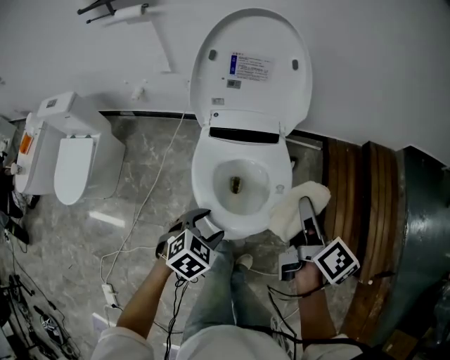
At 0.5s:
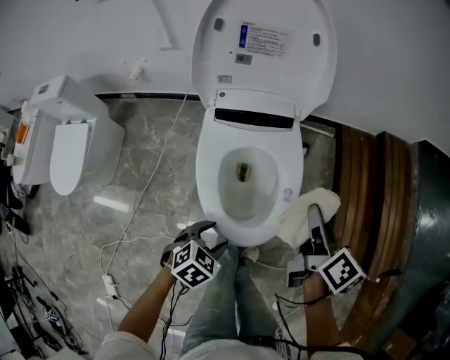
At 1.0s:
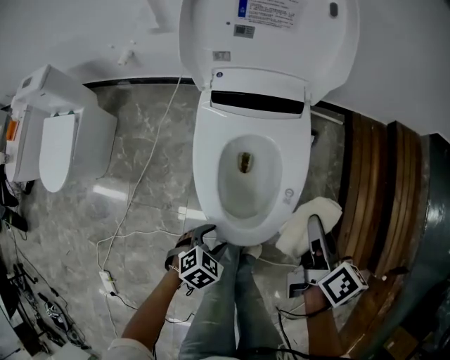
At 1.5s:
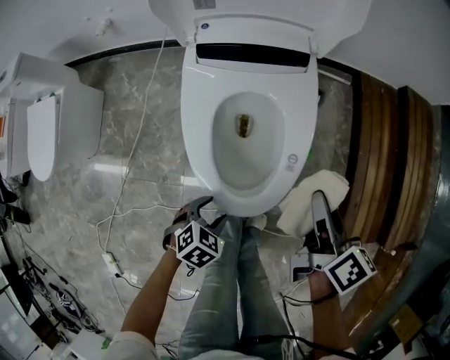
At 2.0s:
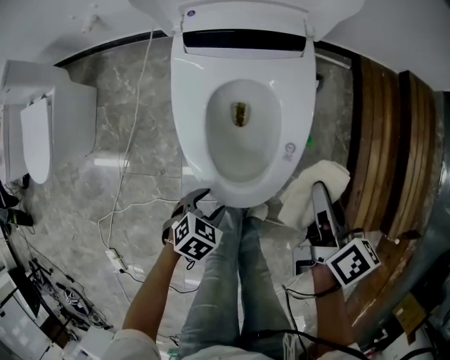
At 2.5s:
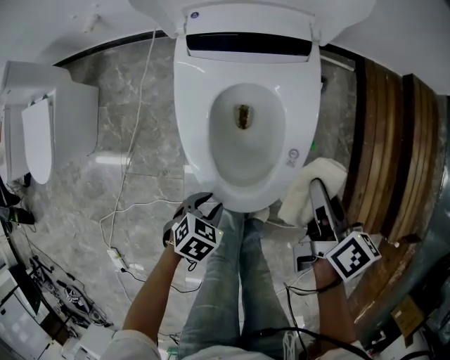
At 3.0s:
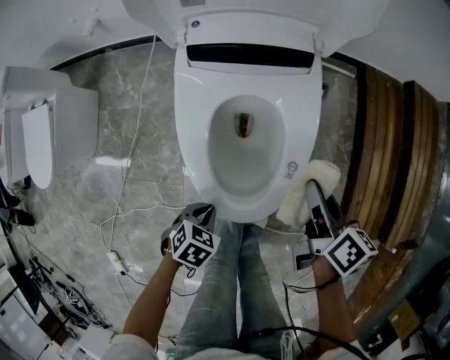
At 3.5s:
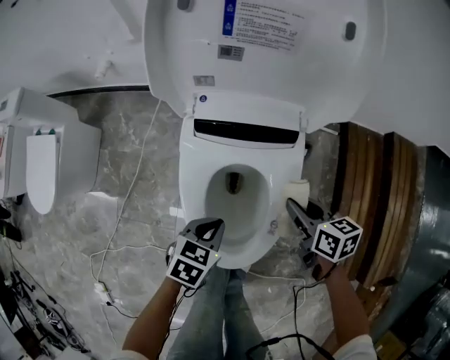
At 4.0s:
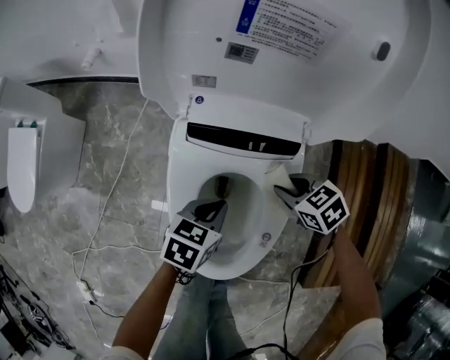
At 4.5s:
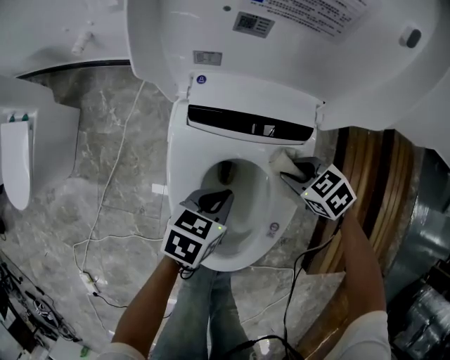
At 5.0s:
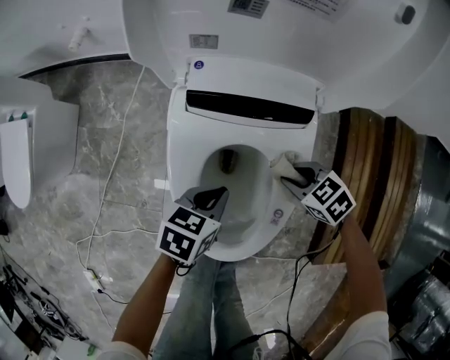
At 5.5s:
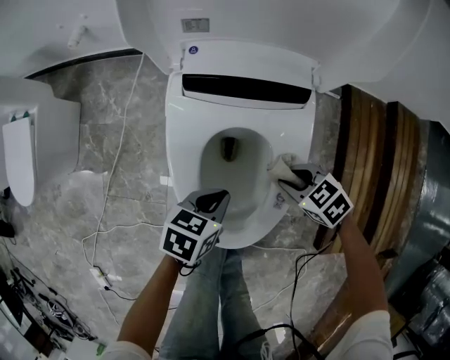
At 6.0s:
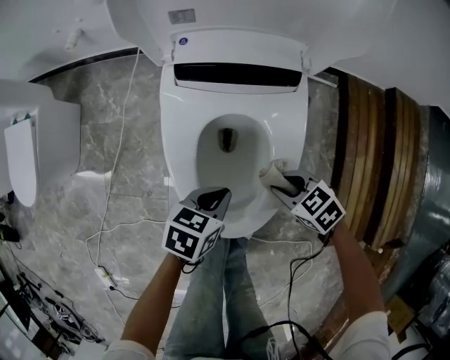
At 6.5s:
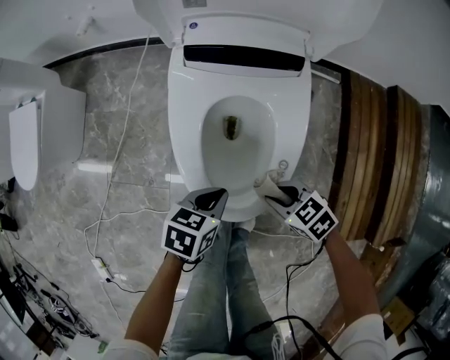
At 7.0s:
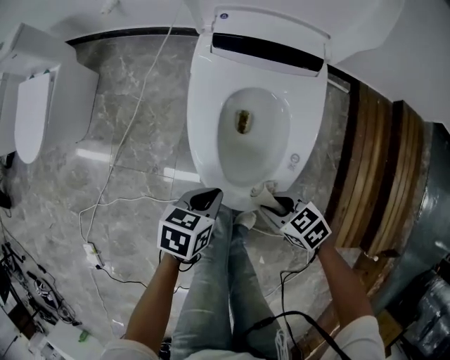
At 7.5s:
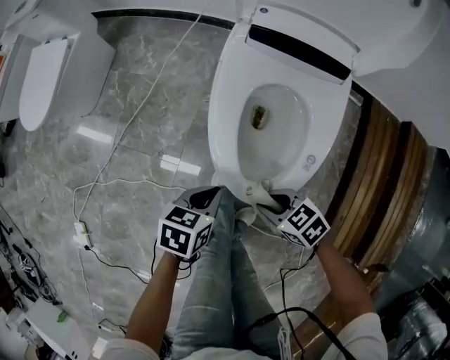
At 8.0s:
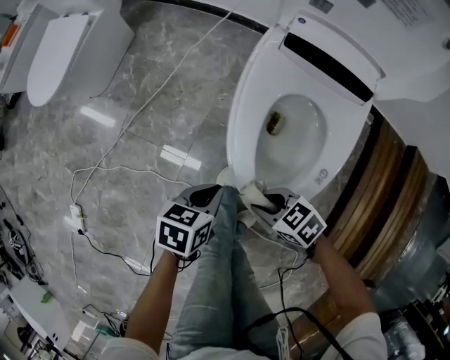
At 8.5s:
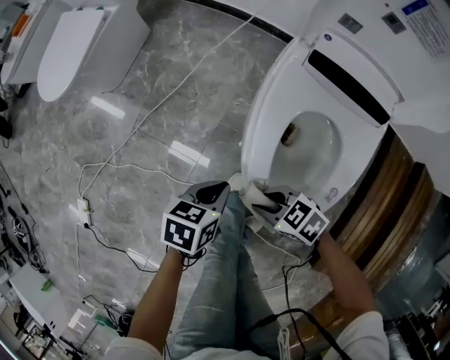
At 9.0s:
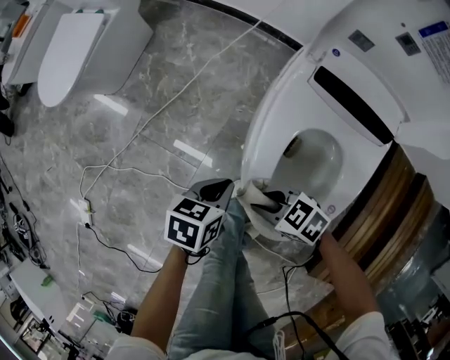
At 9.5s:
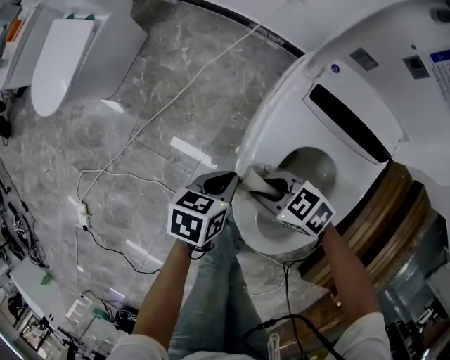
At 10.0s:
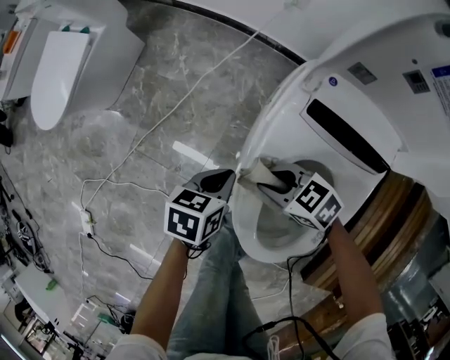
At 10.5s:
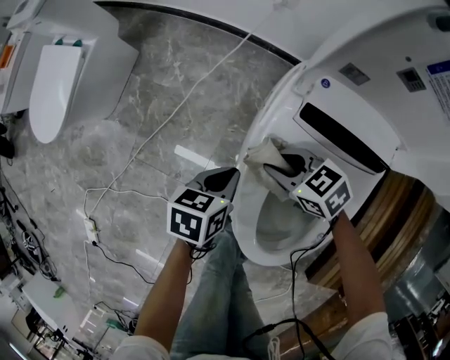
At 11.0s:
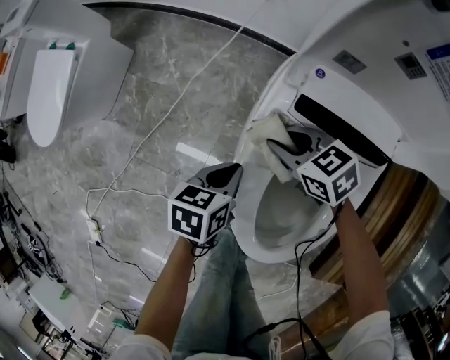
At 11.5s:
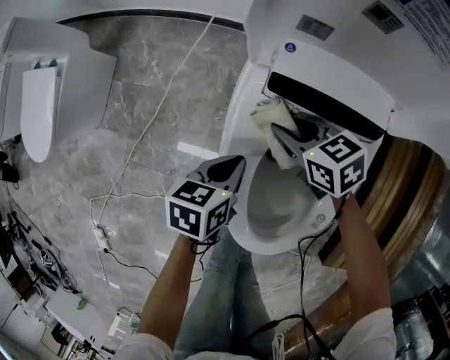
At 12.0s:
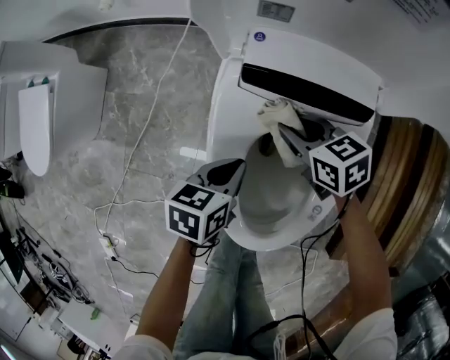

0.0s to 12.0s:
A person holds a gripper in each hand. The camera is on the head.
0.0s to 2.0s: Both grippers move downward, roughly 25 cm.
2.0s to 4.0s: The left gripper ends up about 25 cm from where it was, swivels approximately 30 degrees, and closes. Meanwhile the right gripper changes place by approximately 25 cm, and angles its fingers downward, by some 30 degrees.
4.0s to 6.0s: The left gripper ends up about 10 cm from where it was. Meanwhile the right gripper ends up approximately 15 cm from where it was.
6.0s to 8.0s: The left gripper shifts by roughly 20 cm, and changes its angle by approximately 30 degrees; the right gripper moves approximately 20 cm, and rotates some 20 degrees.
8.0s to 10.0s: The left gripper changes place by about 20 cm. Meanwhile the right gripper changes place by some 25 cm.
10.0s to 12.0s: The left gripper changes place by approximately 10 cm. The right gripper ends up approximately 15 cm from where it was, and rotates about 40 degrees.

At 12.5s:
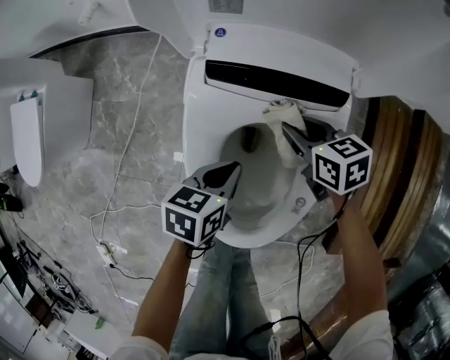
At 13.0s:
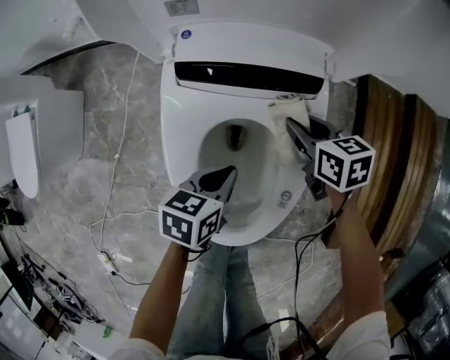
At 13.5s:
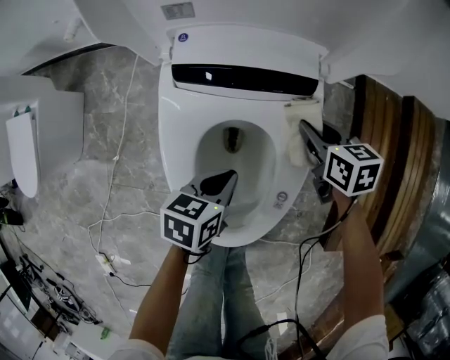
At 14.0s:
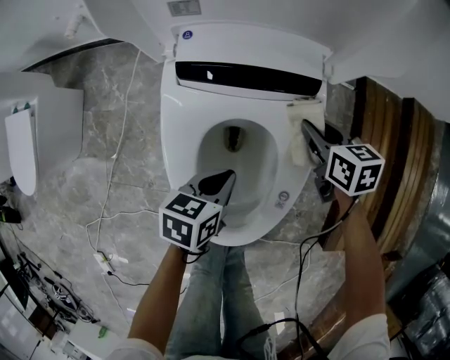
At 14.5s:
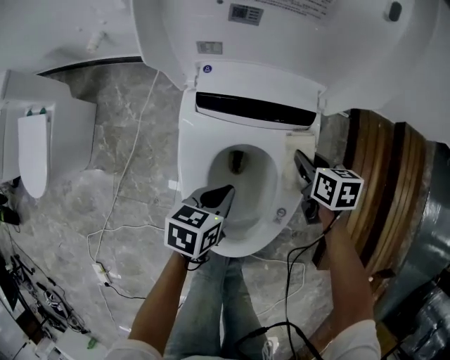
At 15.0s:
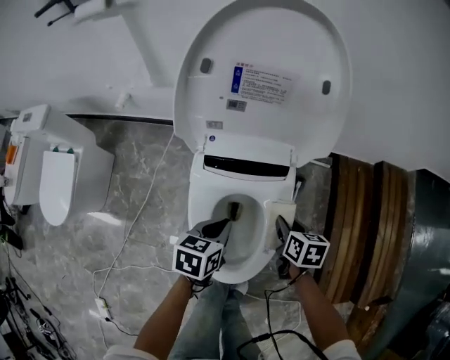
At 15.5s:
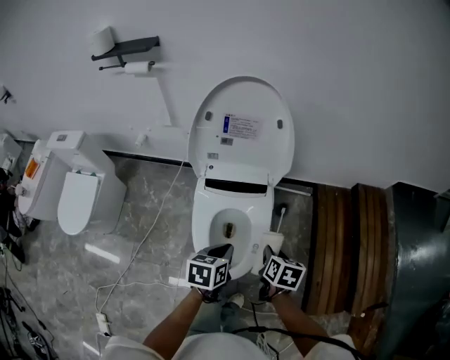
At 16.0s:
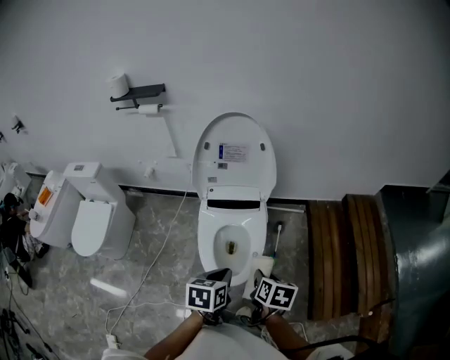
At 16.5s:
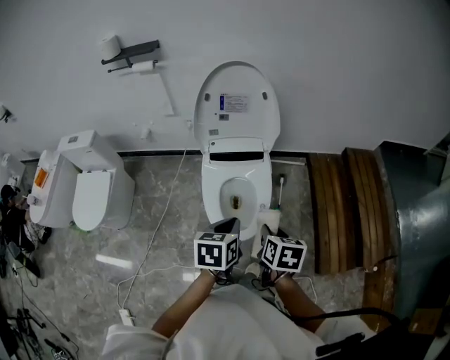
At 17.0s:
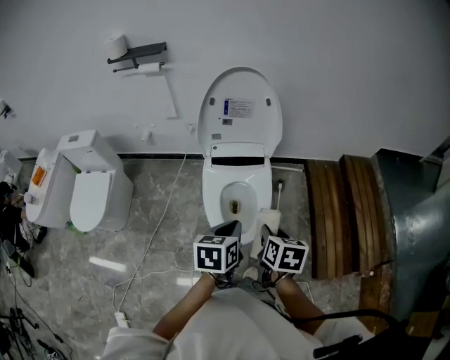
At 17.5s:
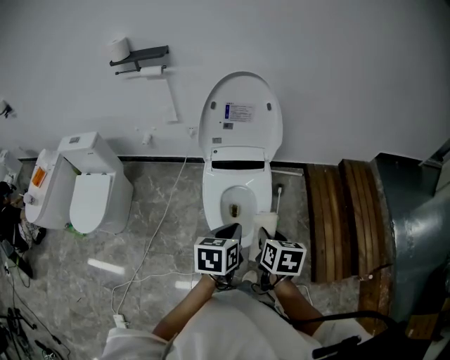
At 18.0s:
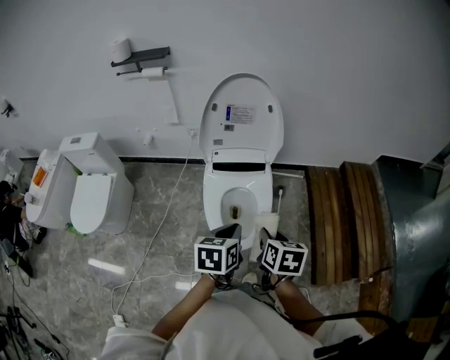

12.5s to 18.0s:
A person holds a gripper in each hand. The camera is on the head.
12.5s to 14.5s: The right gripper is displaced to the right by some 10 cm, and rotates roughly 20 degrees.
14.5s to 16.0s: The left gripper shifts approximately 40 cm upward and backward. Meanwhile the right gripper moves backward and upward, some 40 cm, and swivels about 20 degrees.
16.0s to 18.0s: The right gripper shifts about 5 cm to the left and upward; the left gripper ends up some 5 cm from where it was.

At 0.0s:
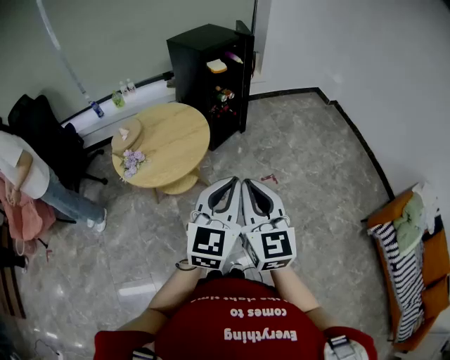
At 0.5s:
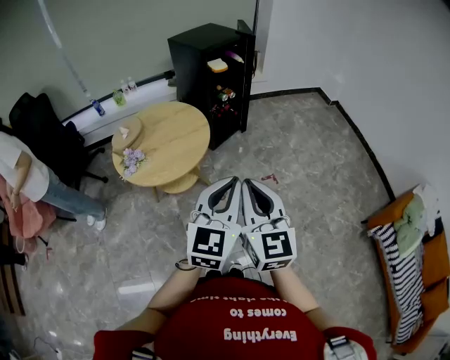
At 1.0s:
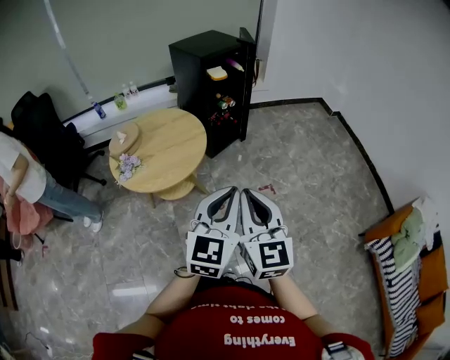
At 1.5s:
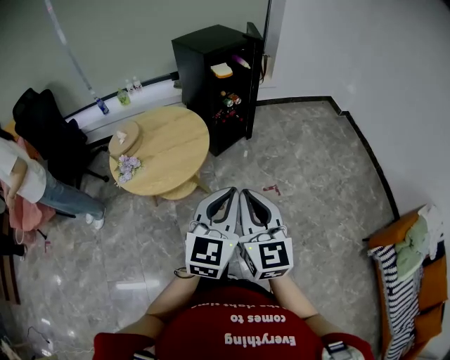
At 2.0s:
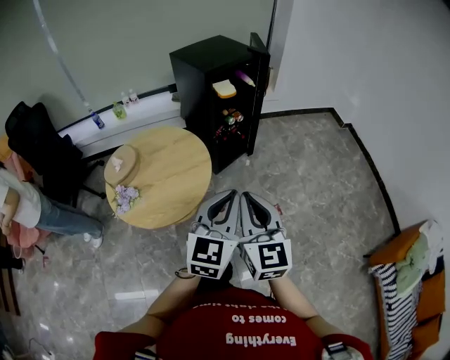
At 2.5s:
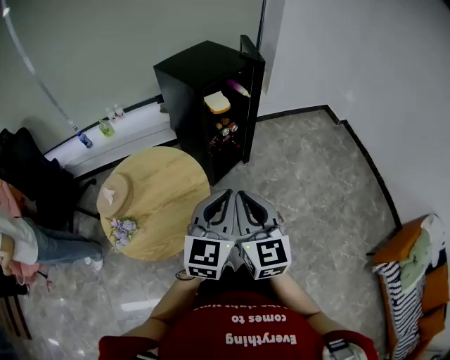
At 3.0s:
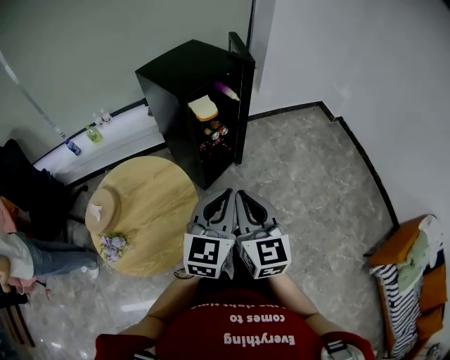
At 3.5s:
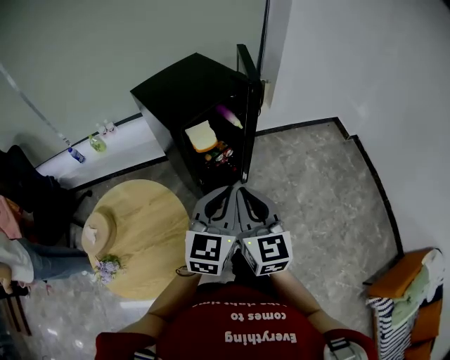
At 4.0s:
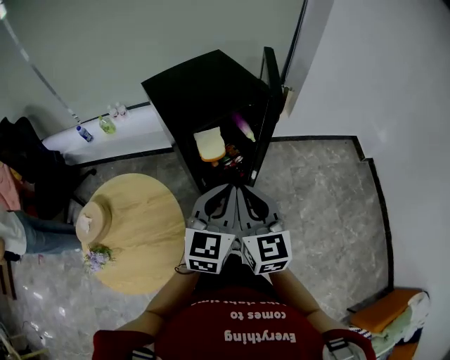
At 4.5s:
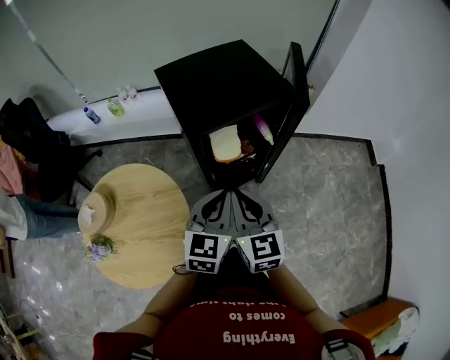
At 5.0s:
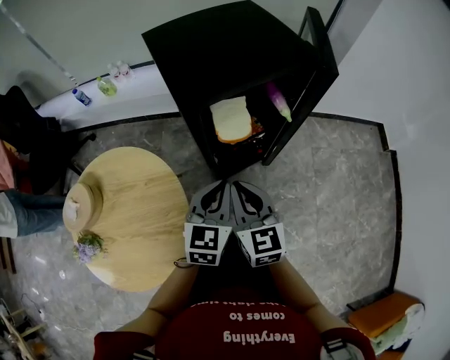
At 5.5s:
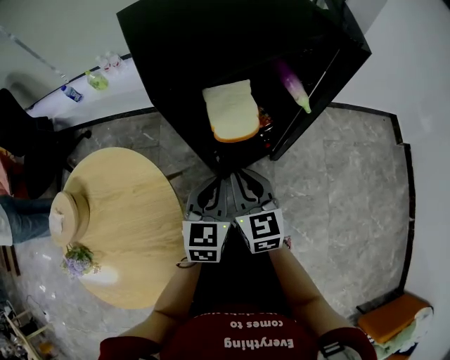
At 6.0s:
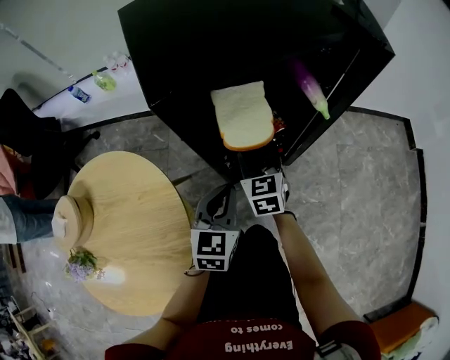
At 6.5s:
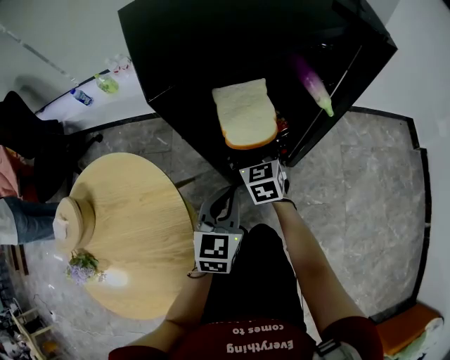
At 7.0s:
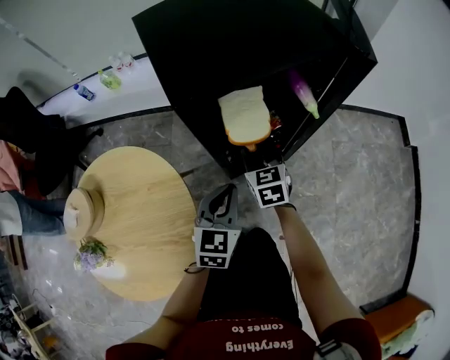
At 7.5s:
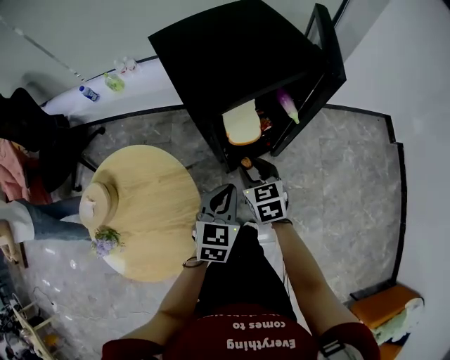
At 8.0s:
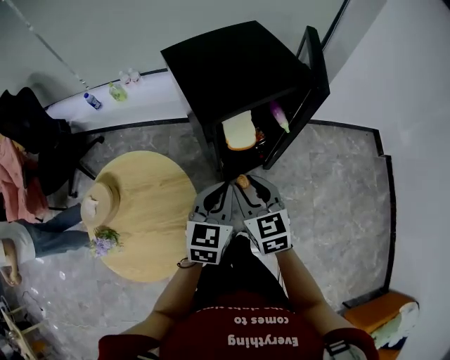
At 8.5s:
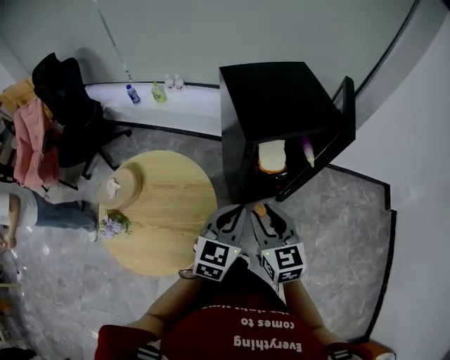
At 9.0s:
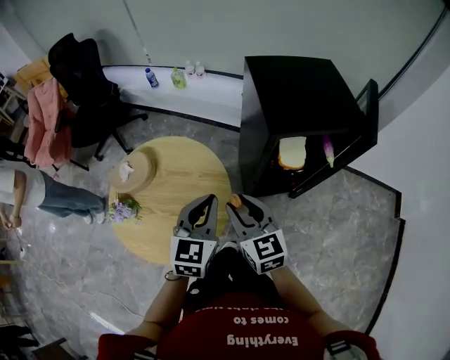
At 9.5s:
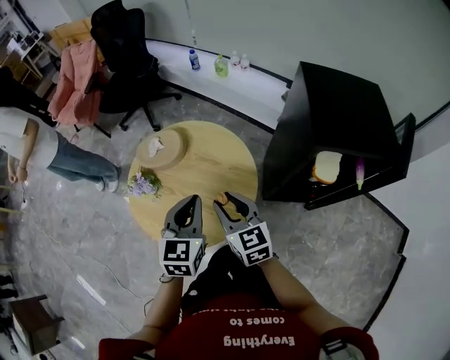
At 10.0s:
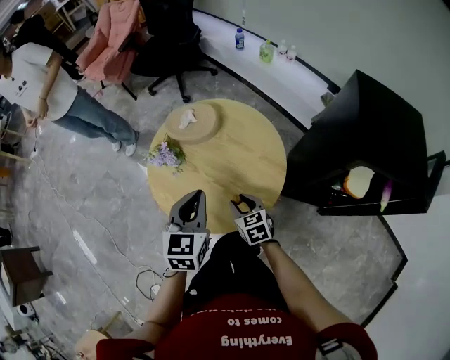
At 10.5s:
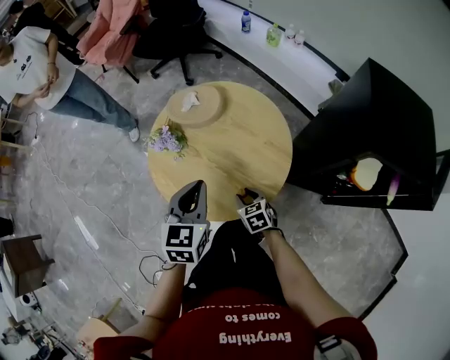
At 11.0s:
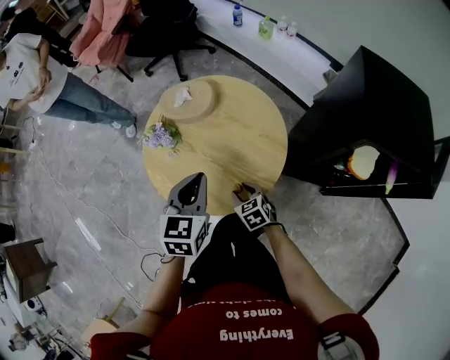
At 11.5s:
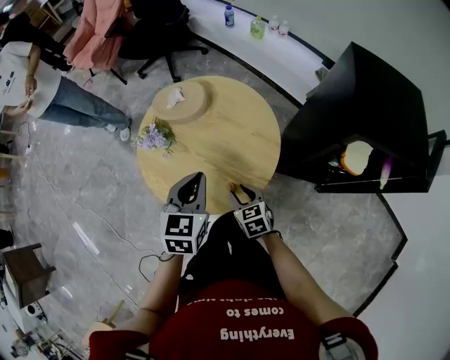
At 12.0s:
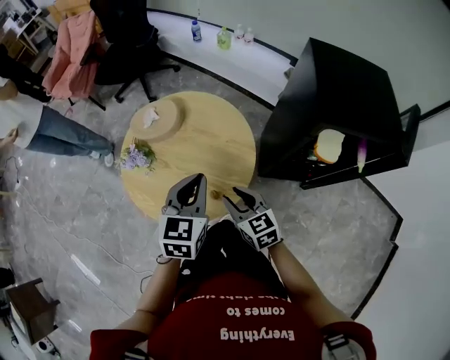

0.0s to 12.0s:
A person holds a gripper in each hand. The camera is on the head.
0.0s to 2.0s: Both grippers travel together forward, approximately 20 cm.
2.0s to 4.0s: The two grippers travel together, forward, some 50 cm.
4.0s to 6.0s: The right gripper goes approximately 50 cm downward and forward, rotates roughly 20 degrees, and opens. The left gripper moves downward, about 35 cm.
6.0s to 8.0s: The right gripper travels upward and backward by about 30 cm, while the left gripper goes approximately 25 cm upward.
8.0s to 10.0s: The left gripper moves about 35 cm, and turns by roughly 50 degrees, while the right gripper moves approximately 35 cm, and turns by about 50 degrees.
10.0s to 12.0s: The right gripper heads upward and to the right, covering approximately 10 cm. The left gripper travels to the right by some 10 cm.
